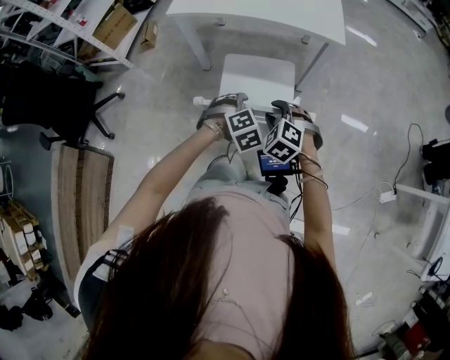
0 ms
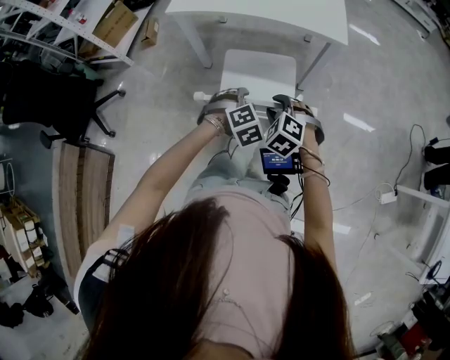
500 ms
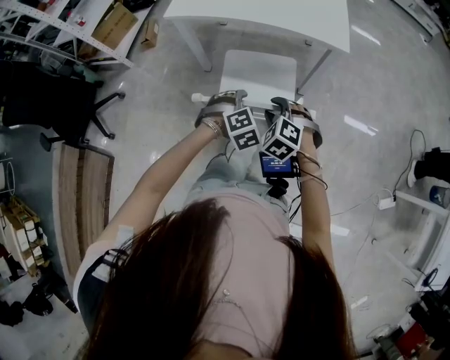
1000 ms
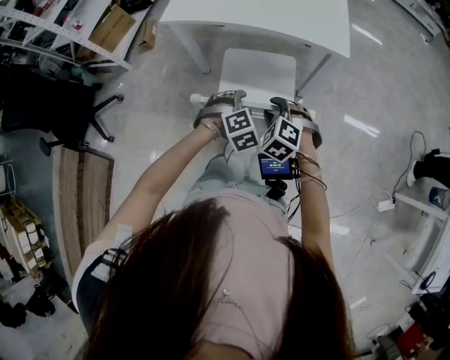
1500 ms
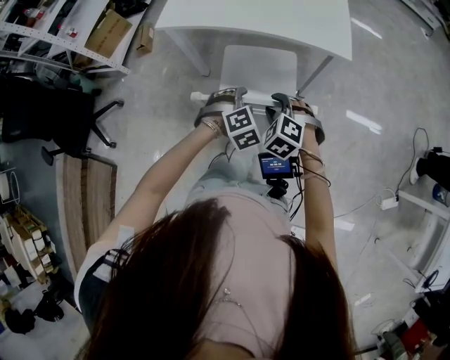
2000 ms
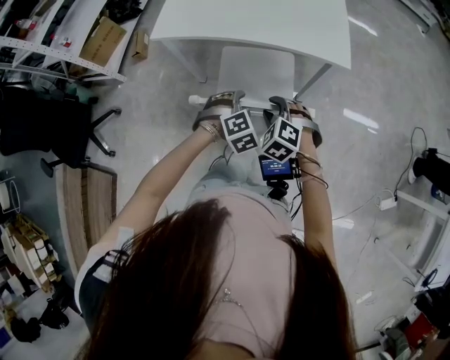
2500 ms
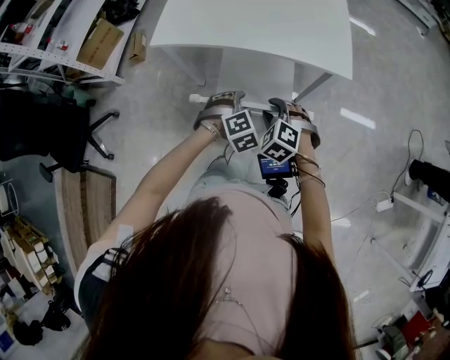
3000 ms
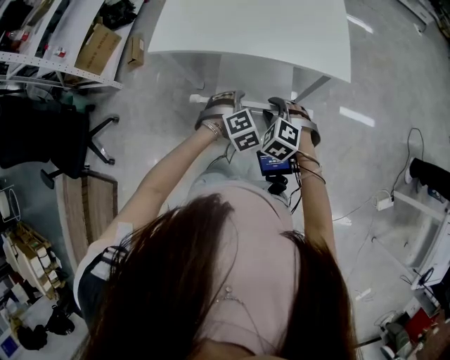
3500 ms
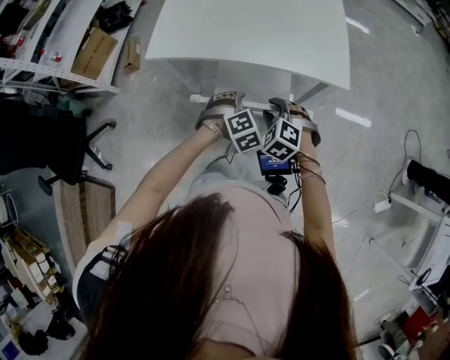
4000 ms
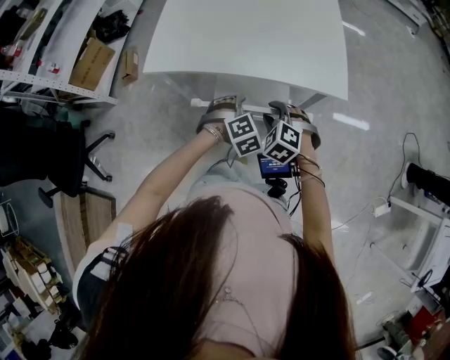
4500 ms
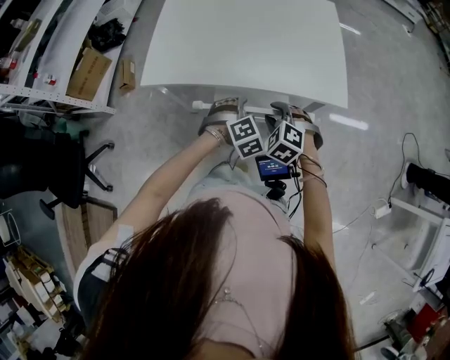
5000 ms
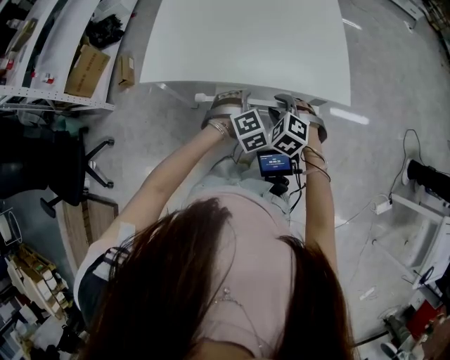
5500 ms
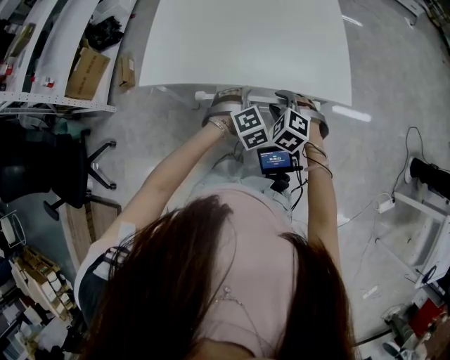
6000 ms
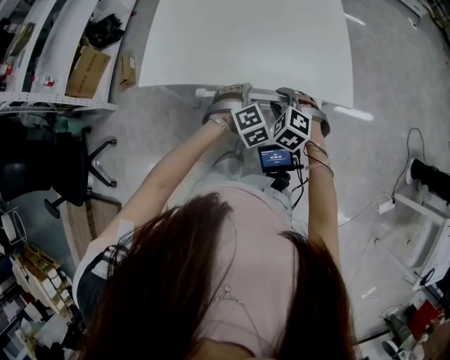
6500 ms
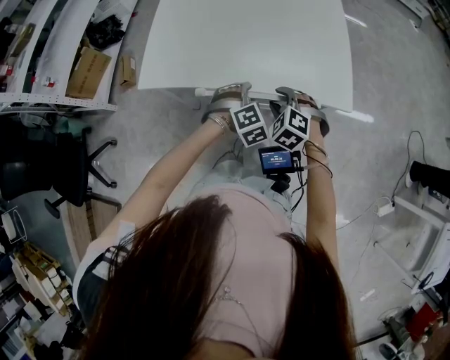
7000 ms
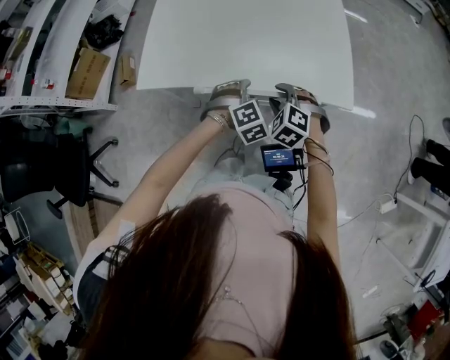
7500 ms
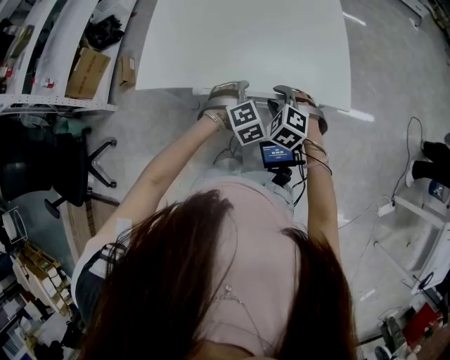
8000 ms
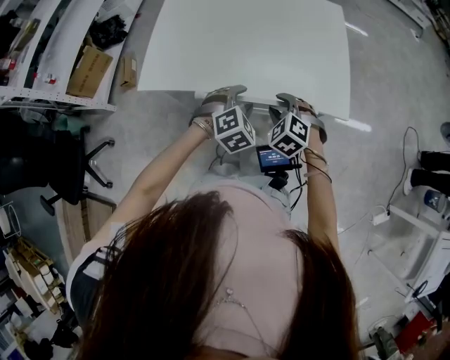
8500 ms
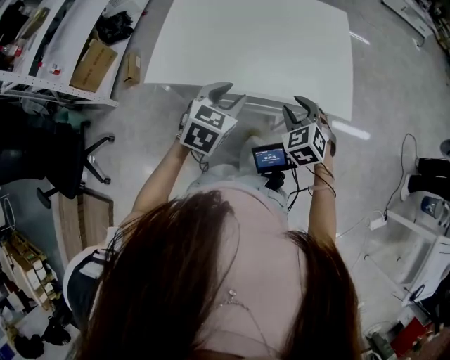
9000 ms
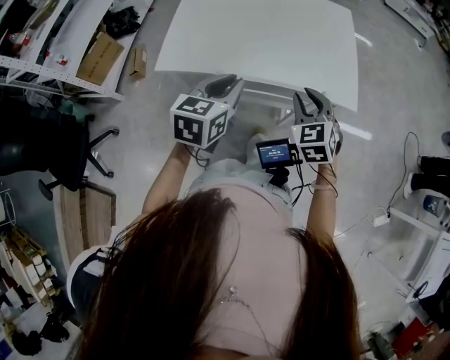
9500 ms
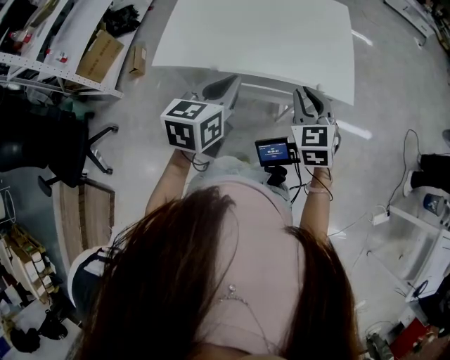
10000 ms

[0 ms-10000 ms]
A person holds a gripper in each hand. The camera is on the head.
0 ms to 2000 ms: The two grippers go about 15 cm forward.
2000 ms to 4000 ms: Both grippers travel together forward, about 15 cm.
4000 ms to 6000 ms: The grippers both shift forward by roughly 10 cm.
6000 ms to 8000 ms: There are only small adjustments of the grippers.
8000 ms to 10000 ms: Both grippers move upward and backward, some 20 cm. The right gripper rotates some 40 degrees, and closes; the left gripper rotates around the line of its fingers by about 70 degrees, counterclockwise from behind, and closes.

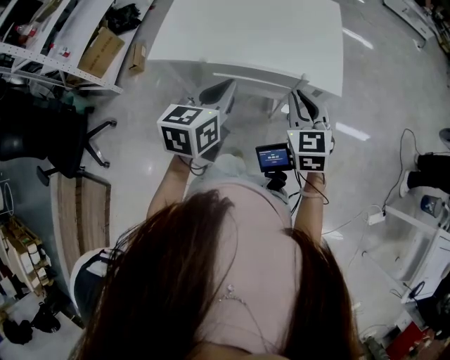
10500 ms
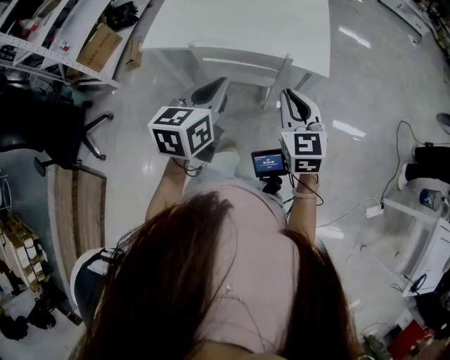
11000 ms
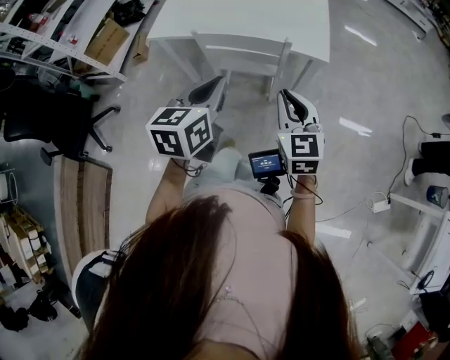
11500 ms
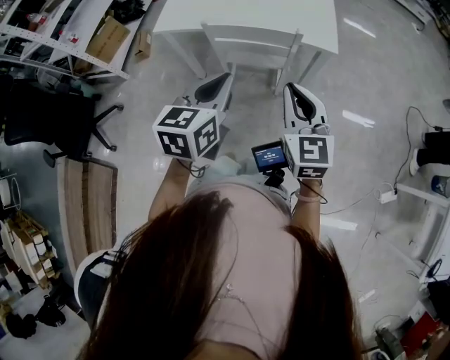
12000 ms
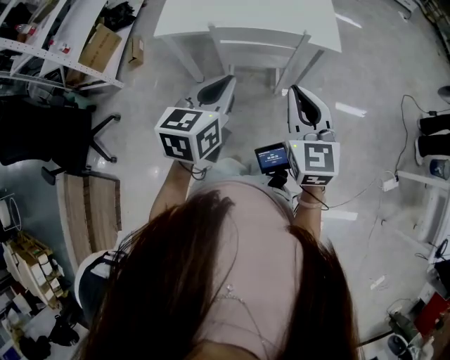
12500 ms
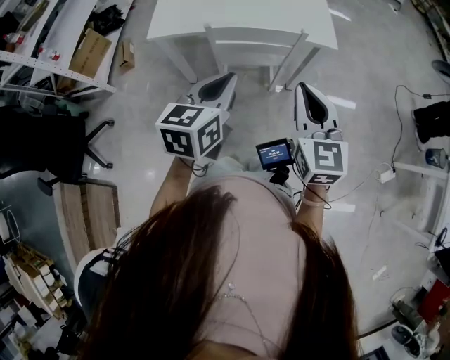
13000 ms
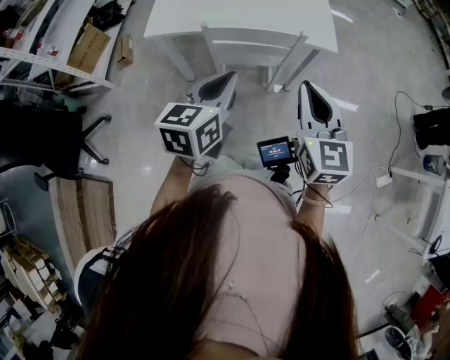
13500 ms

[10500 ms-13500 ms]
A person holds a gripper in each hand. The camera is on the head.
10500 ms to 12000 ms: Both grippers move backward, approximately 20 cm.
12000 ms to 13500 ms: The left gripper ends up approximately 5 cm from where it was.

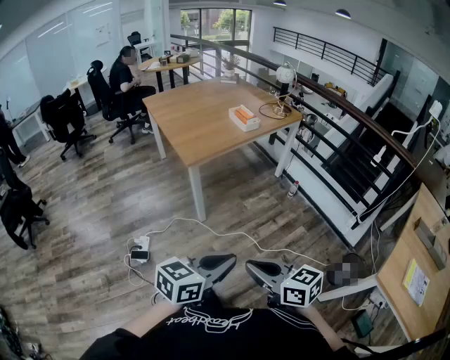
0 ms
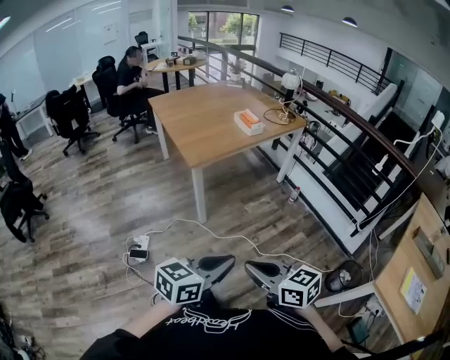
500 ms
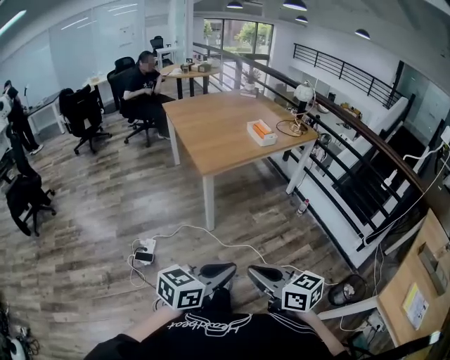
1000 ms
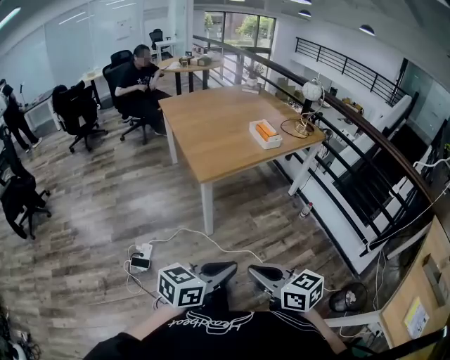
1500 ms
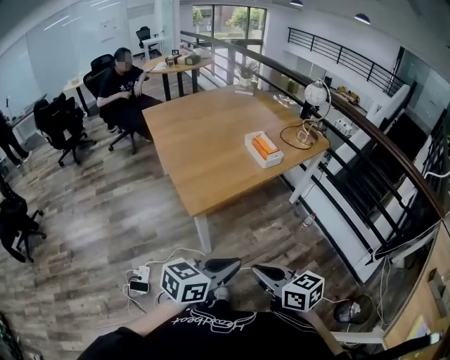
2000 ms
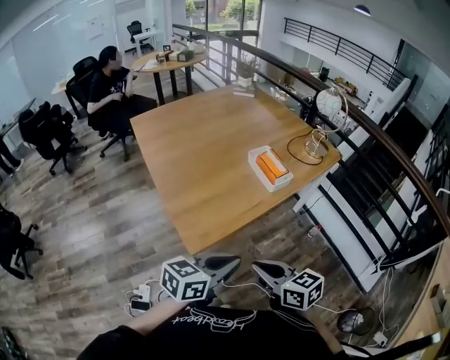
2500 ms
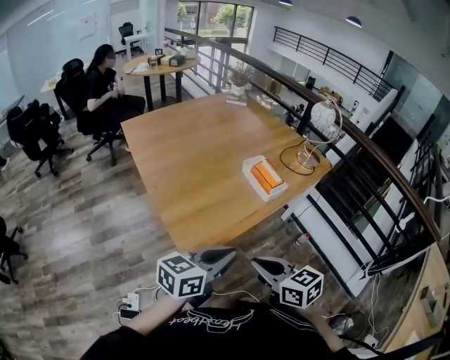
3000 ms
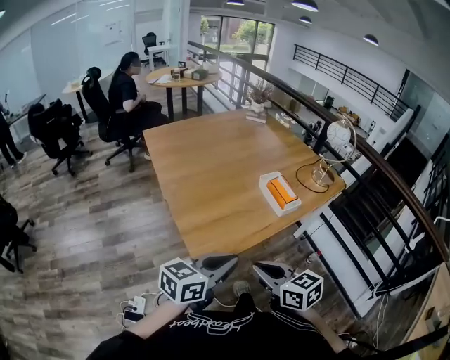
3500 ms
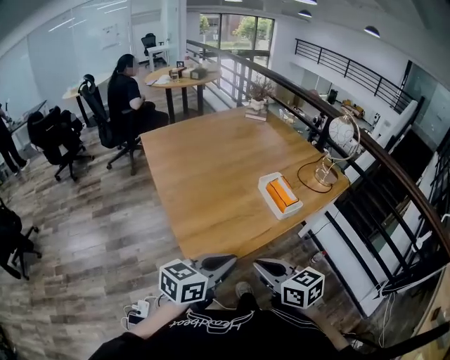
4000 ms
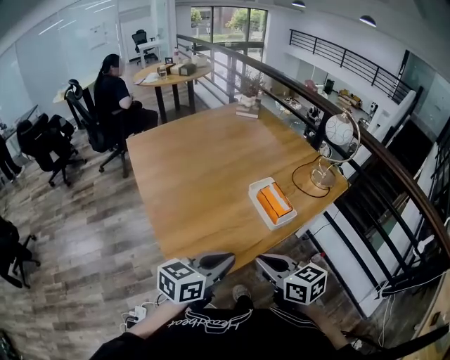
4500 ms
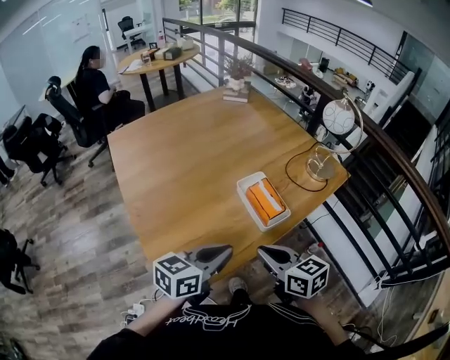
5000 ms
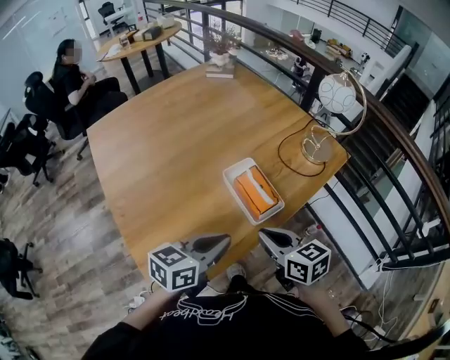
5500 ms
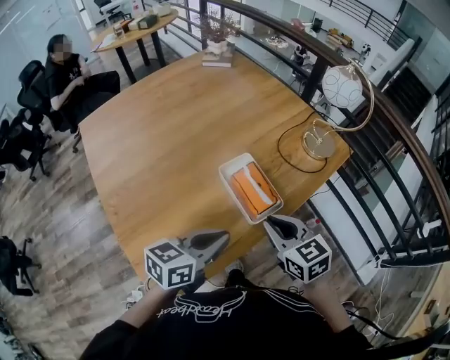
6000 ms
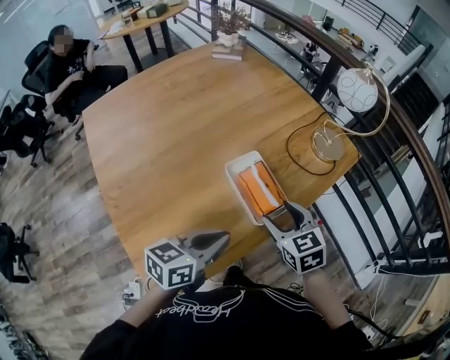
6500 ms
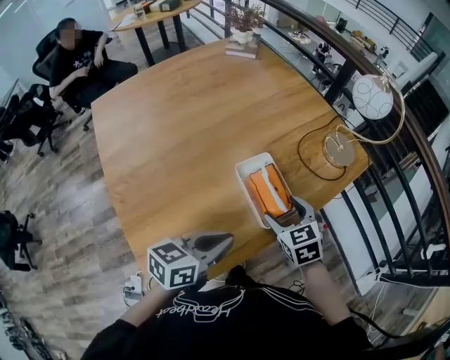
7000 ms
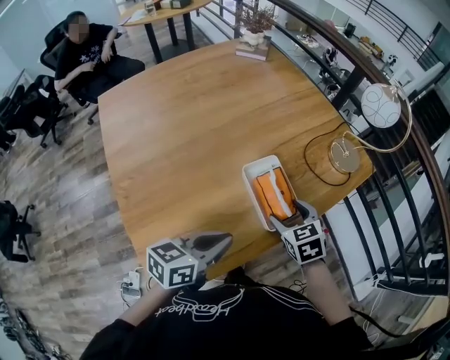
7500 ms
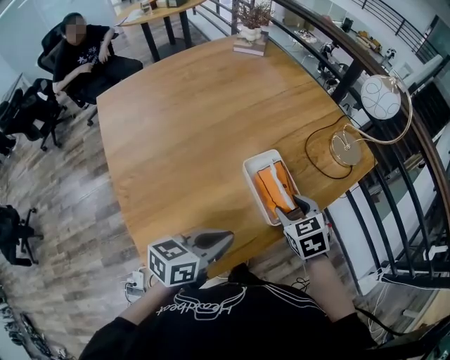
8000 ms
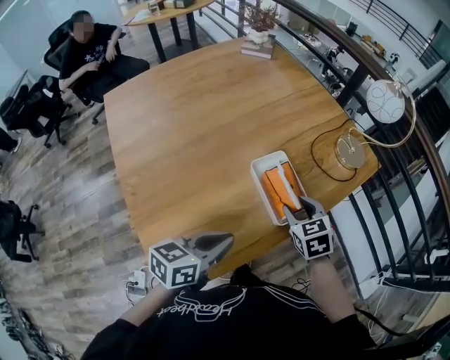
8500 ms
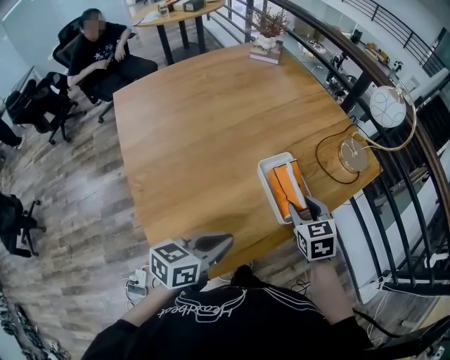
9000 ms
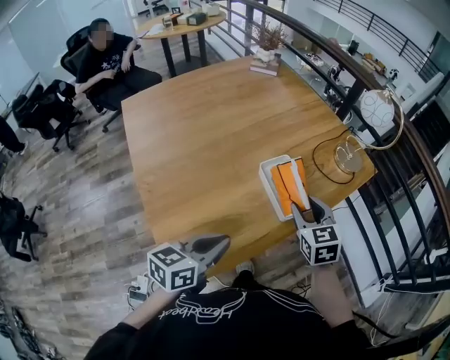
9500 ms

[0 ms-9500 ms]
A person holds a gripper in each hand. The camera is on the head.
0 ms to 2000 ms: Both grippers travel together forward, roughly 35 cm.
2000 ms to 4000 ms: The two grippers go approximately 30 cm forward.
4000 ms to 5500 ms: Both grippers move forward and to the right, about 30 cm.
5500 ms to 7500 ms: The right gripper shifts approximately 15 cm forward and downward, changes its angle by about 30 degrees, and opens its fingers, while the left gripper ends up roughly 5 cm from where it was.
7500 ms to 9500 ms: The left gripper shifts some 10 cm backward; the right gripper is displaced upward by some 10 cm, and closes its fingers.

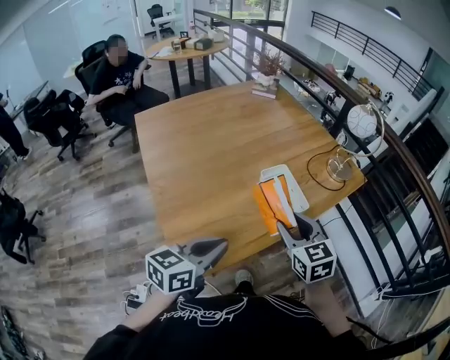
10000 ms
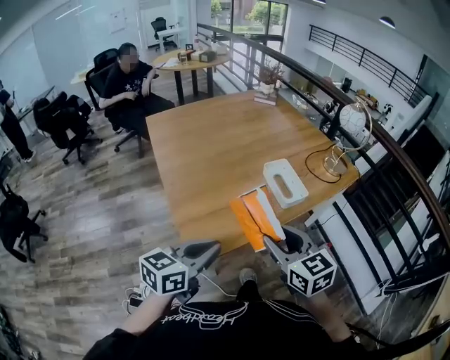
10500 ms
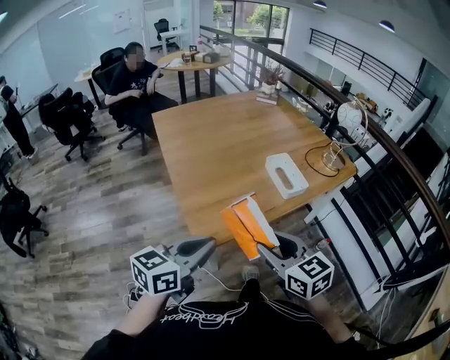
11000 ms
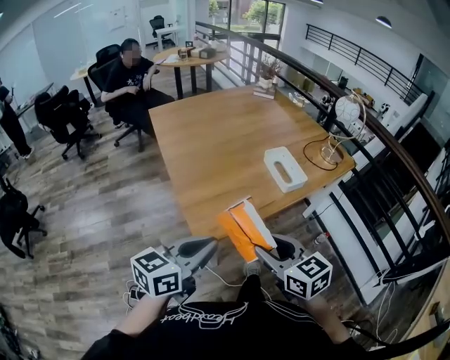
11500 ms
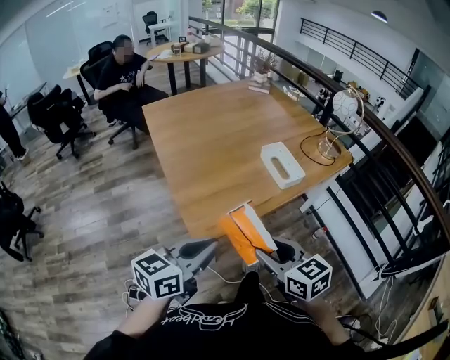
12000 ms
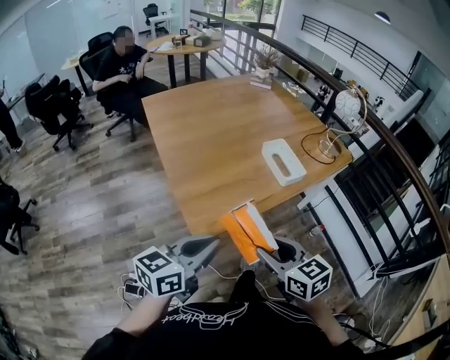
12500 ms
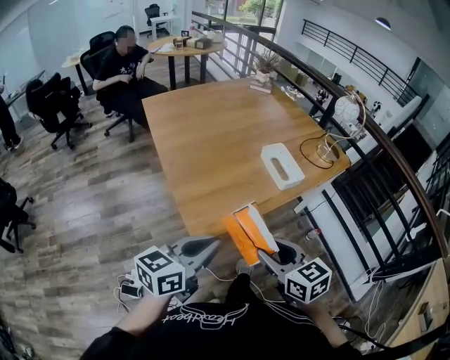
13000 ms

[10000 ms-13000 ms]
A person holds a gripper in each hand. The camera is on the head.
10000 ms to 11500 ms: The grippers both shift backward by roughly 25 cm. The right gripper changes its angle by some 20 degrees.
11500 ms to 13000 ms: The grippers stay close to where they were, moving slightly.

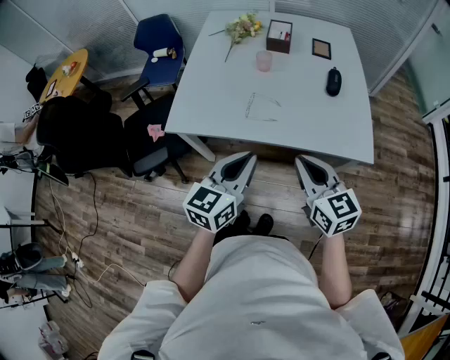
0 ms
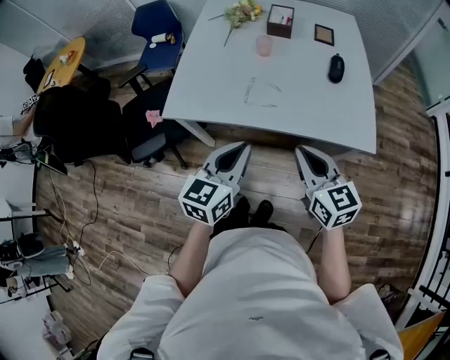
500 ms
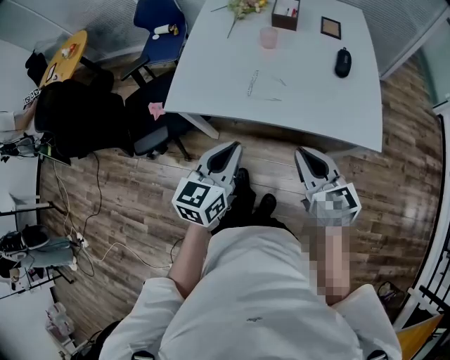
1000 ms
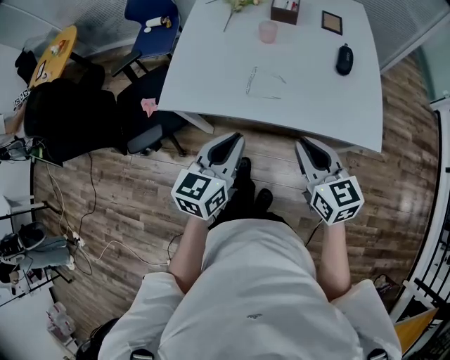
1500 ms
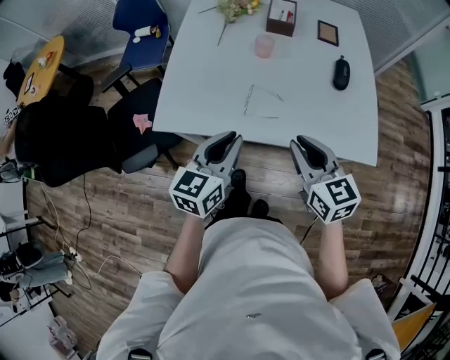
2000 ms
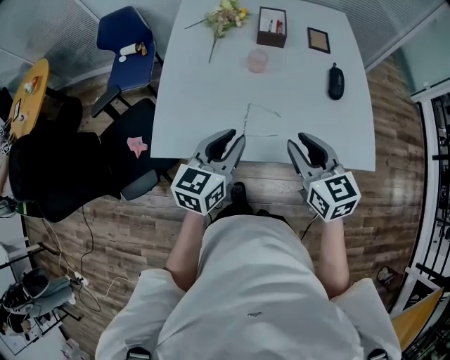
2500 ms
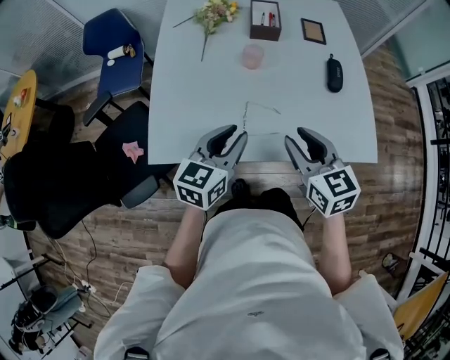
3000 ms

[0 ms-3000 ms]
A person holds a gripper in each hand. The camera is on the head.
0 ms to 1500 ms: The left gripper moves some 5 cm.
1500 ms to 3000 ms: The two grippers go about 15 cm forward. The left gripper opens its fingers; the right gripper opens.
